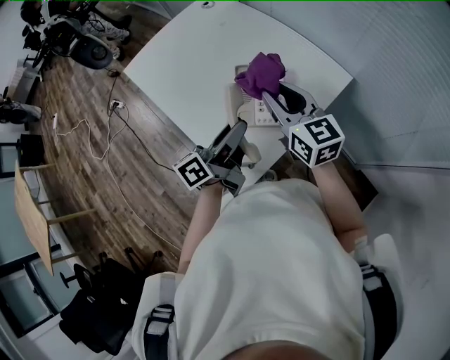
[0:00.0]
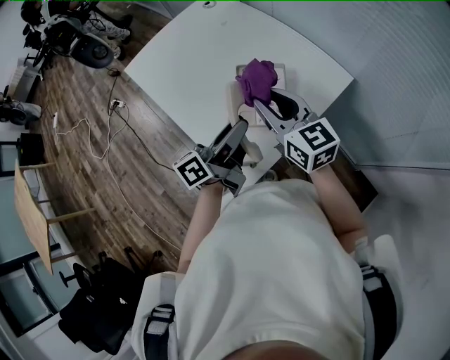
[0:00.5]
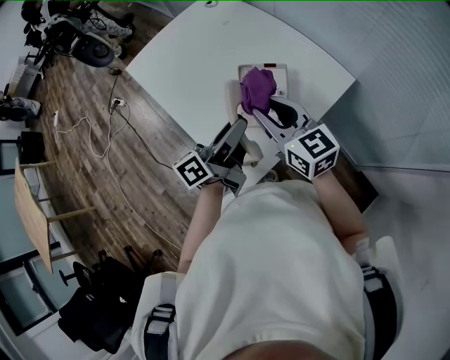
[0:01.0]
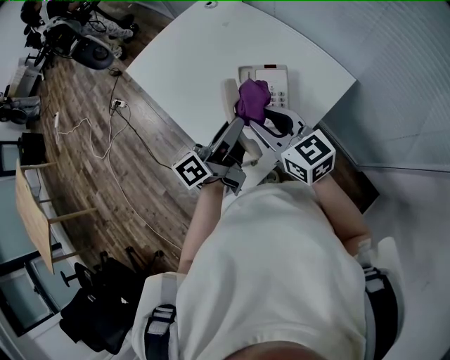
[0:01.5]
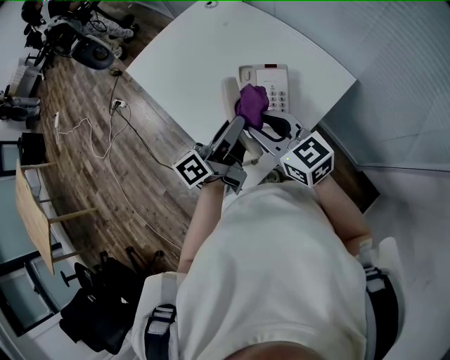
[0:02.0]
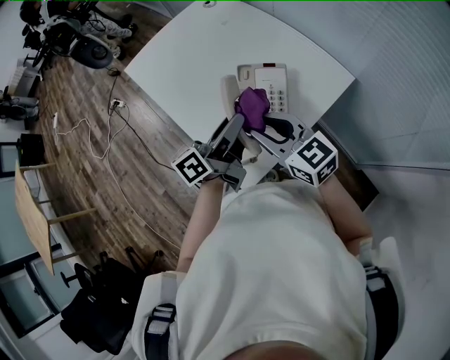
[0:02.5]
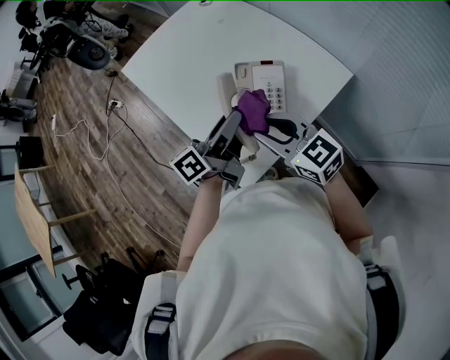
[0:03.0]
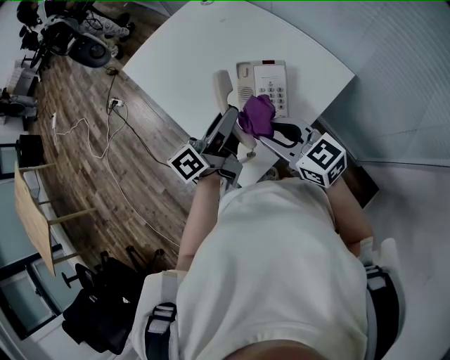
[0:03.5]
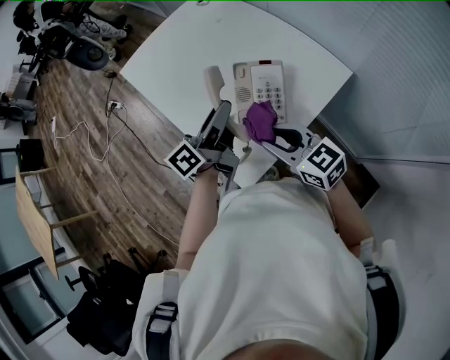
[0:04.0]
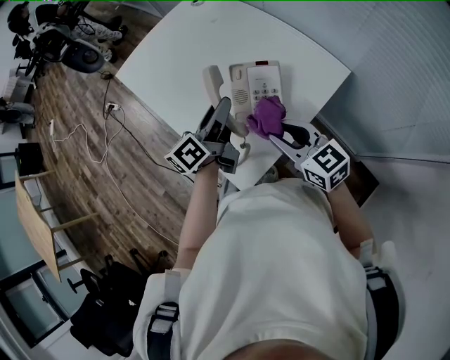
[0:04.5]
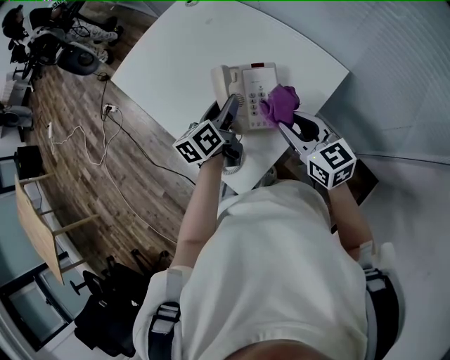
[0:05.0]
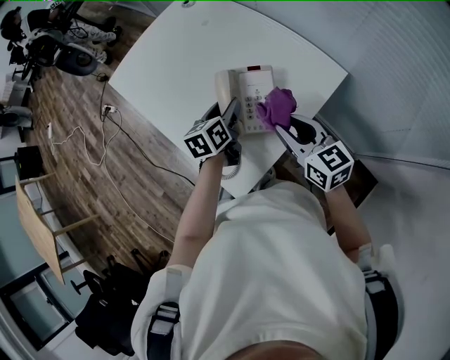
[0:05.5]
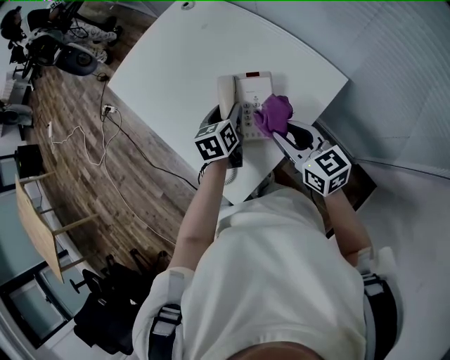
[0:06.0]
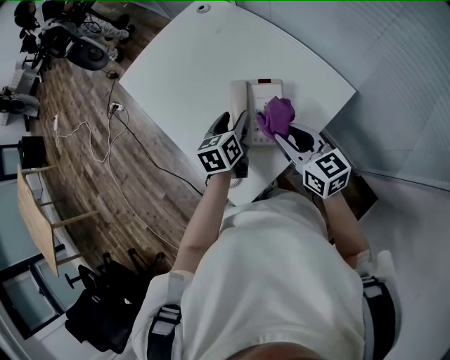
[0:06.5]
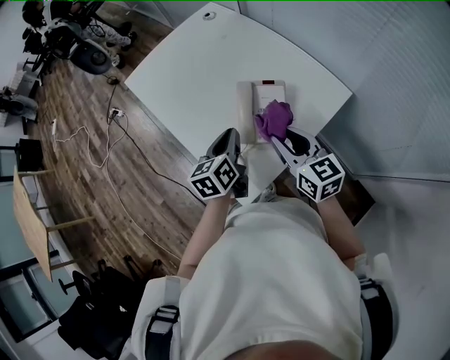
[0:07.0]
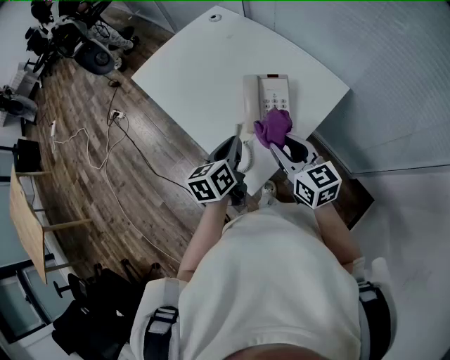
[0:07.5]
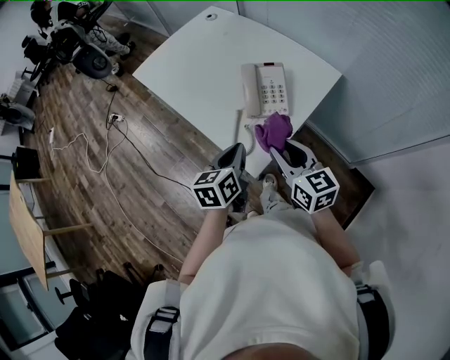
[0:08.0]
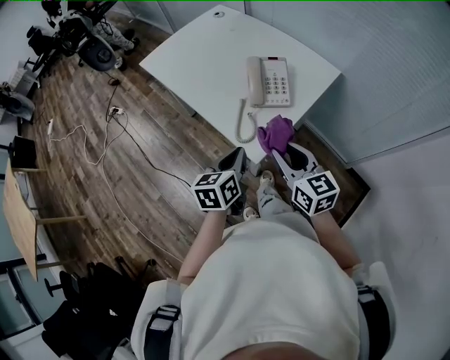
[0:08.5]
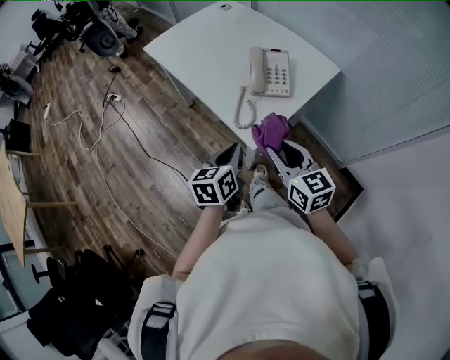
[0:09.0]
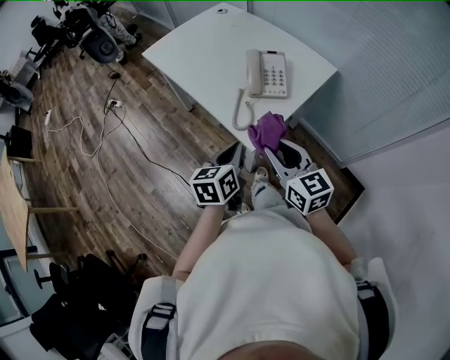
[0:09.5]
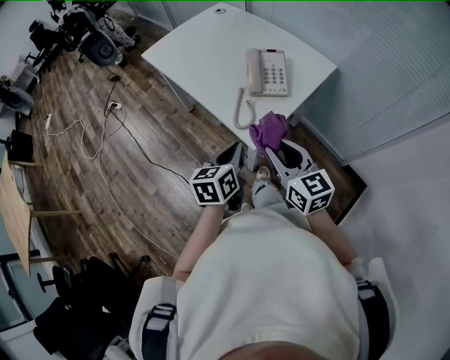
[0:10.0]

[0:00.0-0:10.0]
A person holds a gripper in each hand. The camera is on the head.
0:00.0 to 0:02.0: The right gripper moves backward and to the left, about 10 cm.
0:02.0 to 0:04.0: The right gripper shifts by roughly 5 cm.
0:04.0 to 0:06.0: The left gripper goes roughly 15 cm downward and forward, and points its fingers roughly 40 degrees further downward. Meanwhile the right gripper goes approximately 10 cm to the right and forward.
0:06.0 to 0:08.0: The two grippers go some 20 cm backward and to the left. The left gripper closes.
0:08.0 to 0:10.0: The grippers both shift backward by some 10 cm.

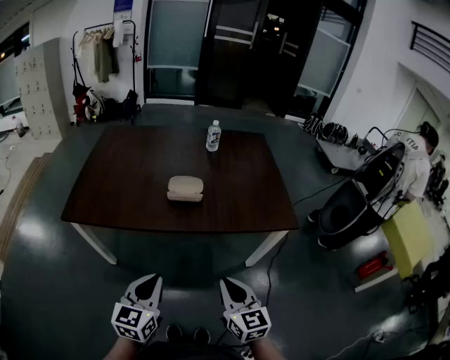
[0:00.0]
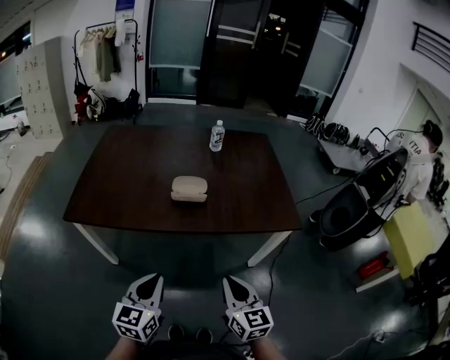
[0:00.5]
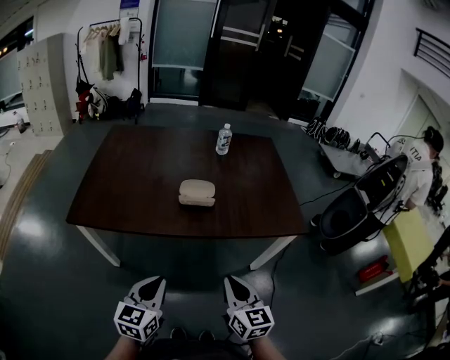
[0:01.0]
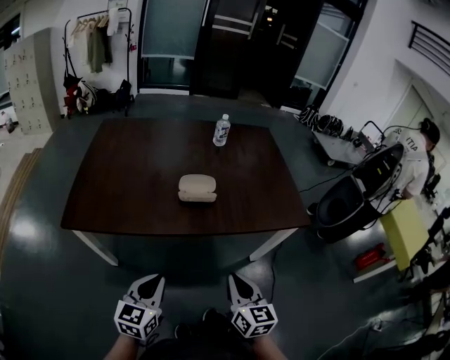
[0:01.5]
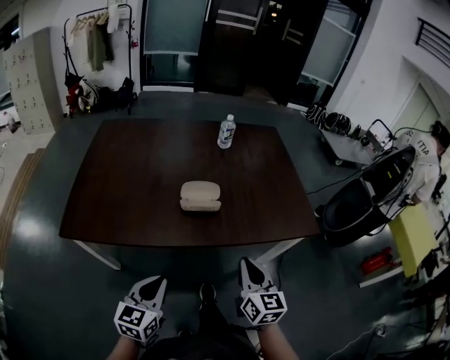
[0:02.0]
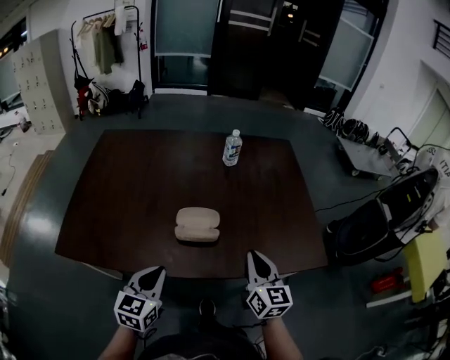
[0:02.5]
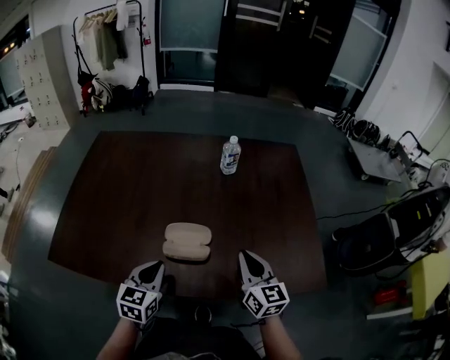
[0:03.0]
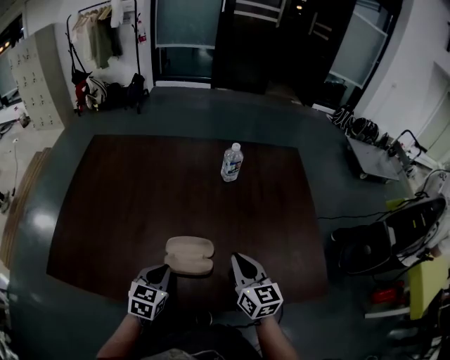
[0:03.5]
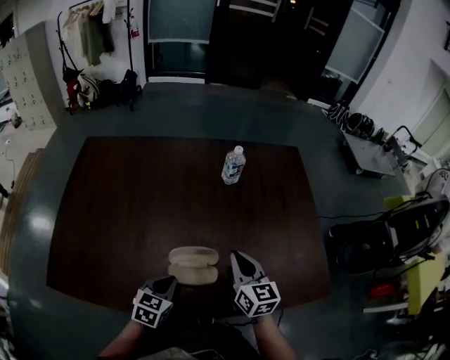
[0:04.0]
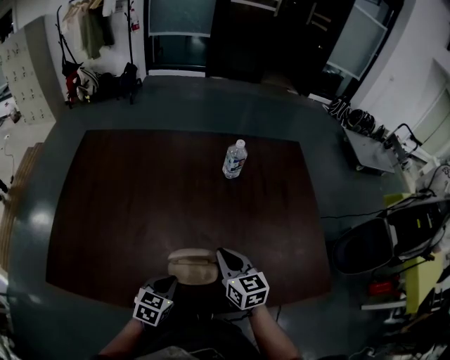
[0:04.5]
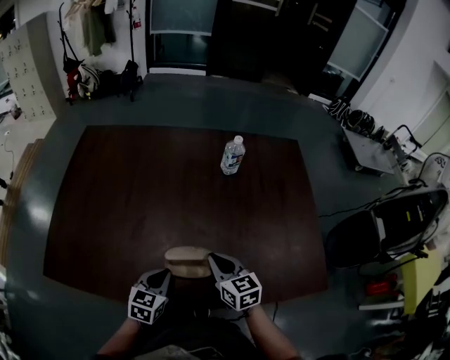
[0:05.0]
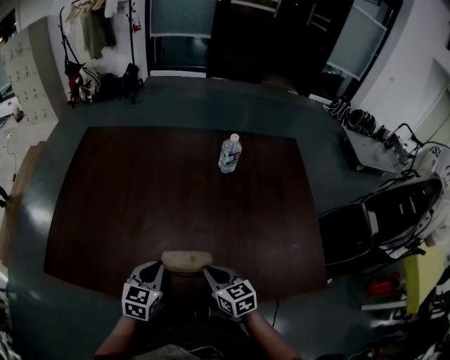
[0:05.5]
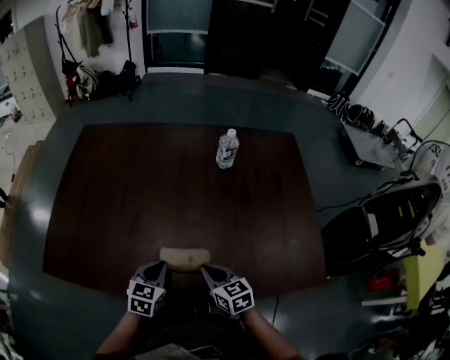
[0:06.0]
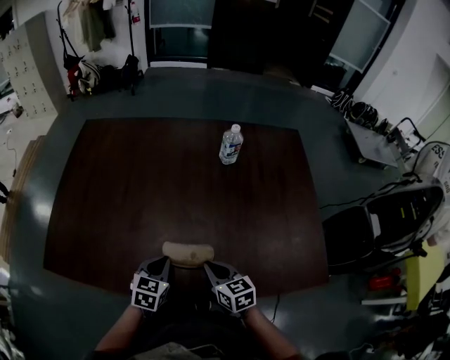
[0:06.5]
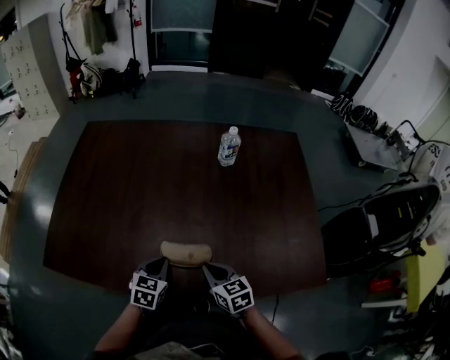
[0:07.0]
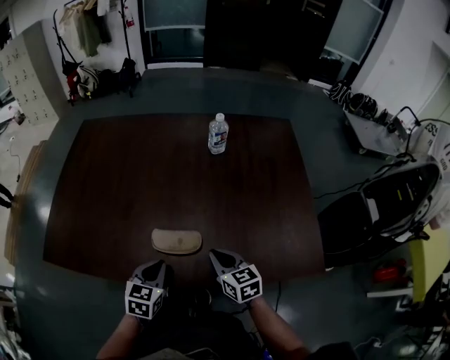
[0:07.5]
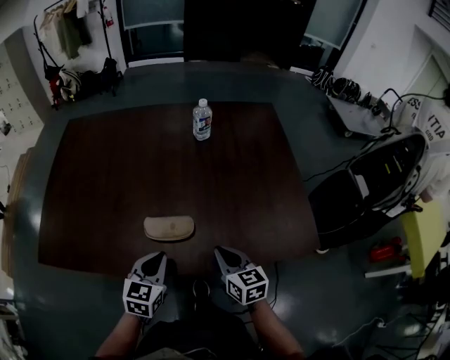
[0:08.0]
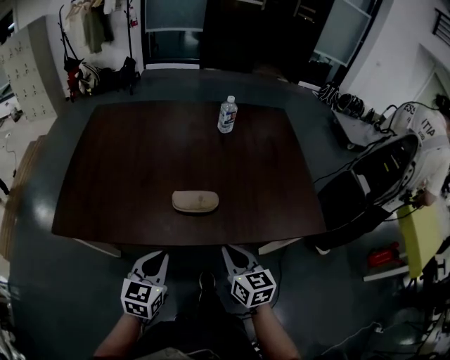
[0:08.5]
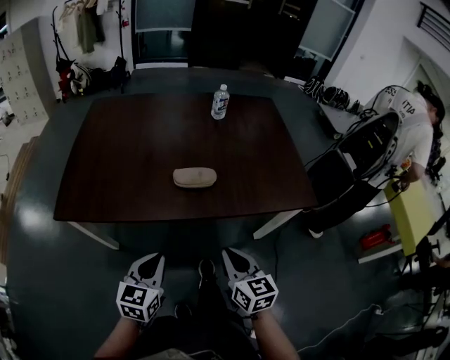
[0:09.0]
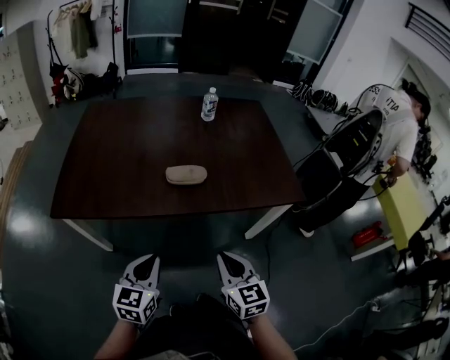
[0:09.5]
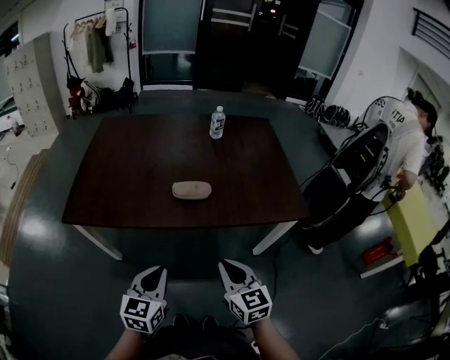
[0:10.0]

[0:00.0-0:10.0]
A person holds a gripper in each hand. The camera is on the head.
0:00.0 to 0:02.0: The left gripper travels forward and to the left by about 15 cm, while the right gripper moves forward, roughly 15 cm.
0:02.0 to 0:04.0: Both grippers move forward, approximately 35 cm. The left gripper changes its angle by about 20 degrees.
0:04.0 to 0:06.0: The right gripper is displaced downward, backward and to the left by about 15 cm, and swivels some 30 degrees.
0:06.0 to 0:08.0: The left gripper is displaced backward and to the right by roughly 10 cm. The right gripper moves to the right and backward, roughly 10 cm.
0:08.0 to 0:10.0: The grippers both shift backward by about 30 cm.

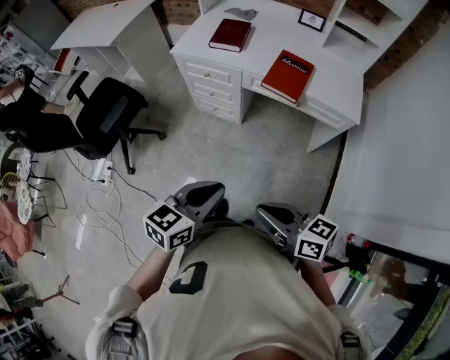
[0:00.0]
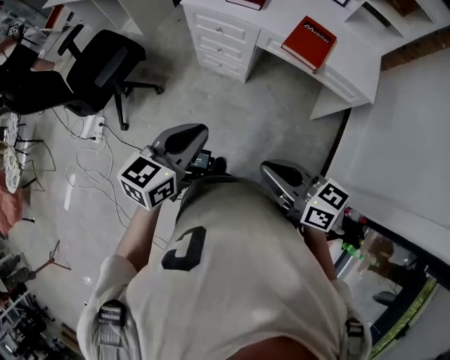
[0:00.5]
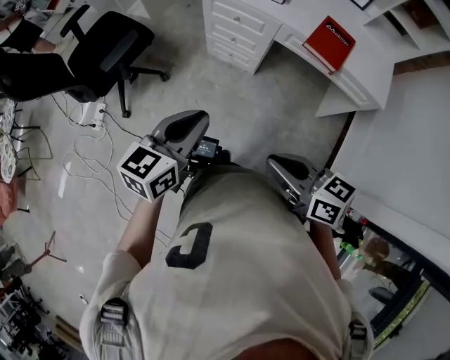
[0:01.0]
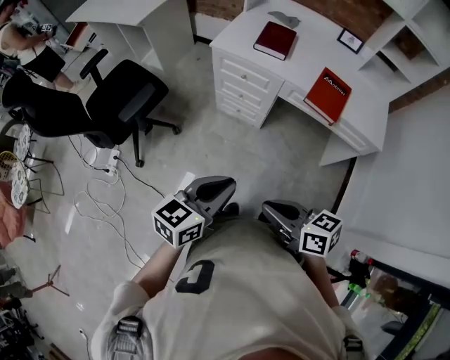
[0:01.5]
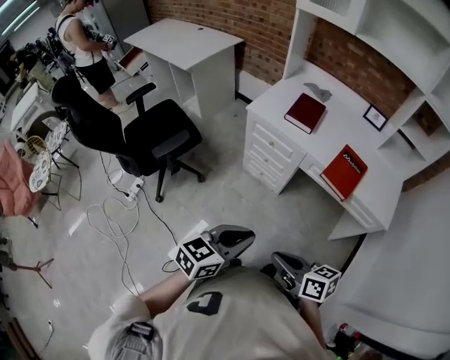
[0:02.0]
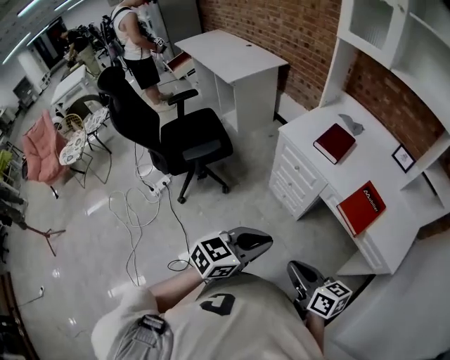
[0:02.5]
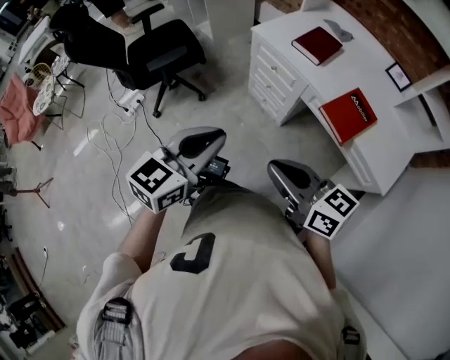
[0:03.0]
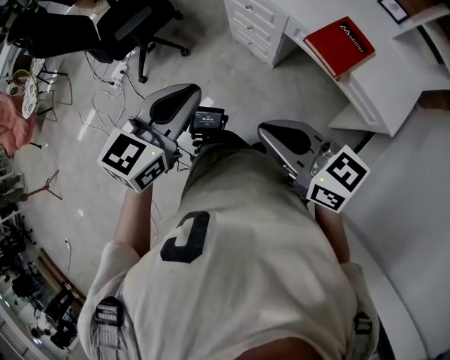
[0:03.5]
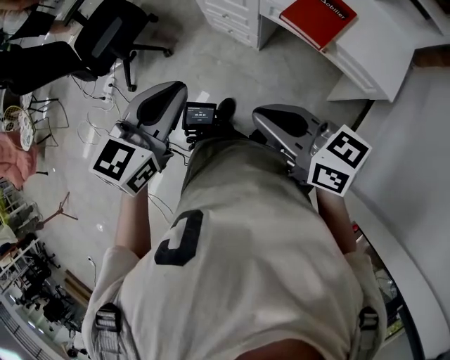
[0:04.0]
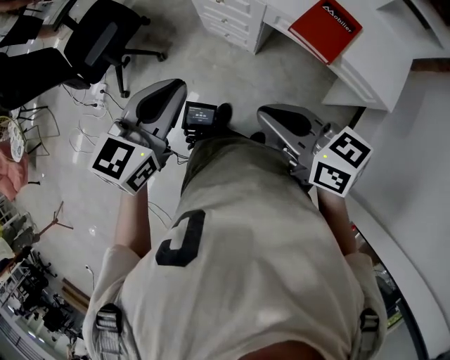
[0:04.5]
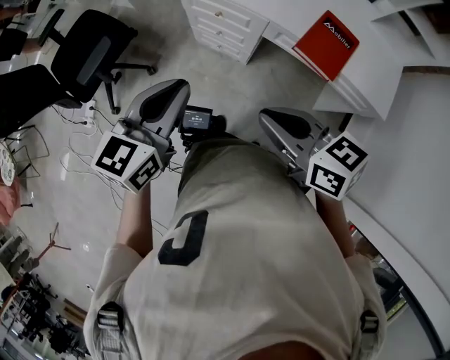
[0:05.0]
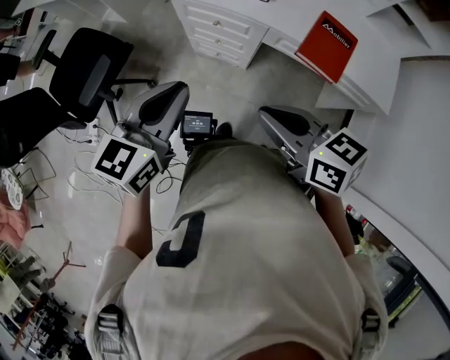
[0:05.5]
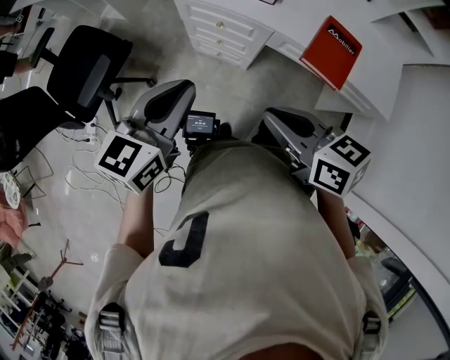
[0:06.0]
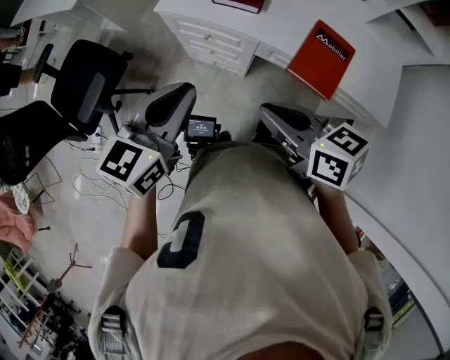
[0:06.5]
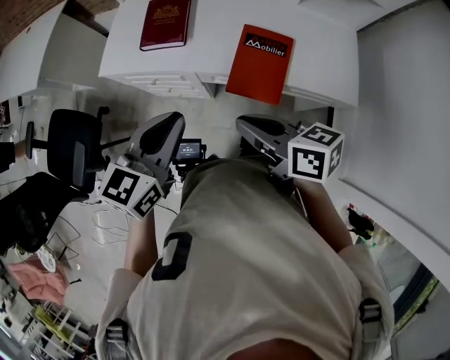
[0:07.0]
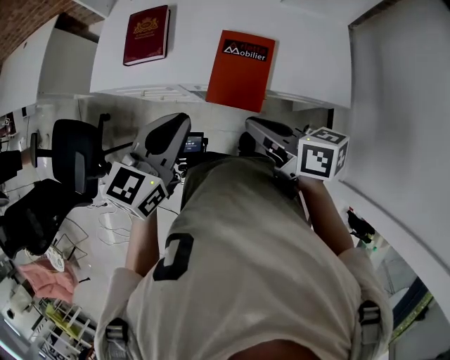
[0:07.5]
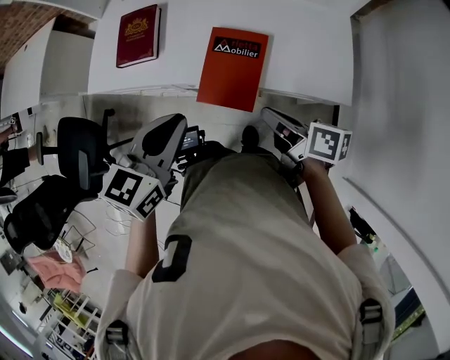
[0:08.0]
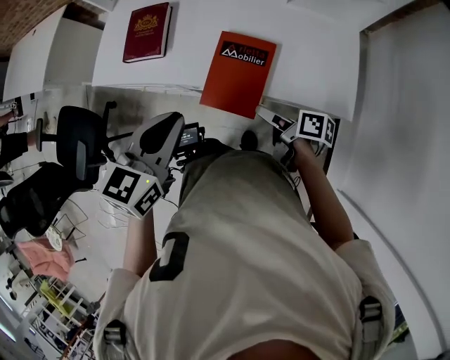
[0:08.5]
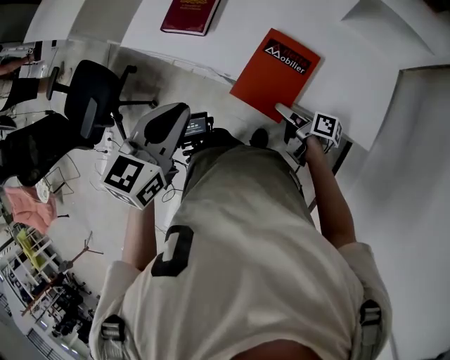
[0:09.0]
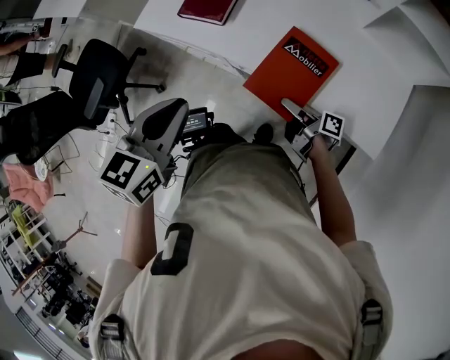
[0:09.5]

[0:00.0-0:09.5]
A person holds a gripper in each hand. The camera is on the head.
0:00.0 to 0:02.0: Both grippers travel together forward and to the left, approximately 15 cm.
0:02.0 to 0:04.0: The left gripper travels to the right by about 10 cm, and rotates approximately 20 degrees. The right gripper travels to the right and upward by about 15 cm.
0:04.0 to 0:05.5: Both grippers travel together forward and to the left, some 20 cm.
0:05.5 to 0:07.5: The two grippers go some 30 cm to the right. The right gripper swivels approximately 30 degrees.
0:07.5 to 0:09.5: The left gripper is displaced to the left by about 5 cm, and rotates roughly 20 degrees; the right gripper shifts roughly 20 cm downward, changes its angle by about 40 degrees, and opens.
